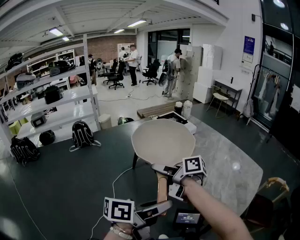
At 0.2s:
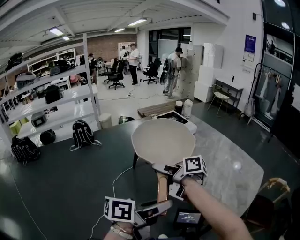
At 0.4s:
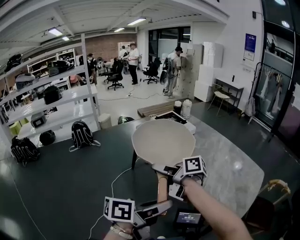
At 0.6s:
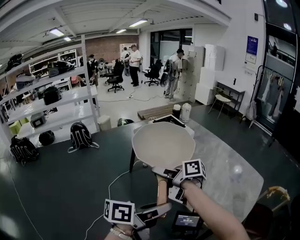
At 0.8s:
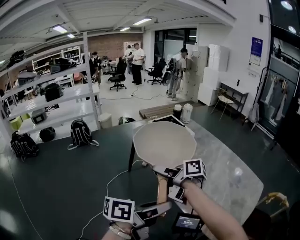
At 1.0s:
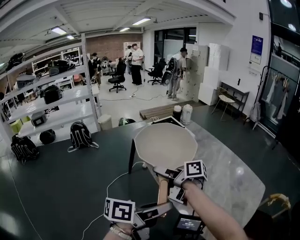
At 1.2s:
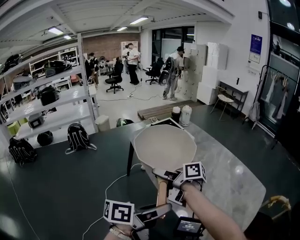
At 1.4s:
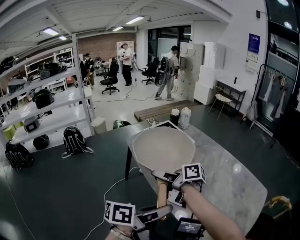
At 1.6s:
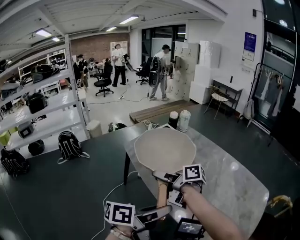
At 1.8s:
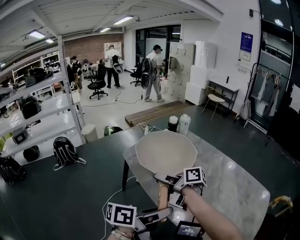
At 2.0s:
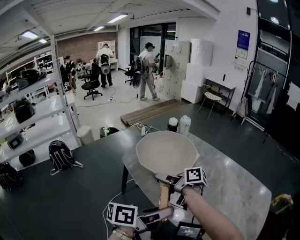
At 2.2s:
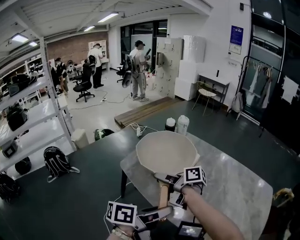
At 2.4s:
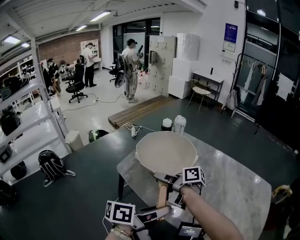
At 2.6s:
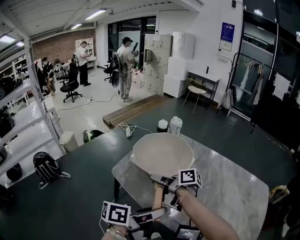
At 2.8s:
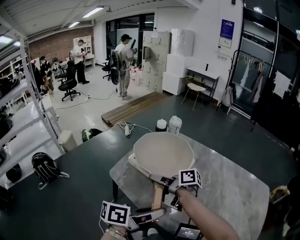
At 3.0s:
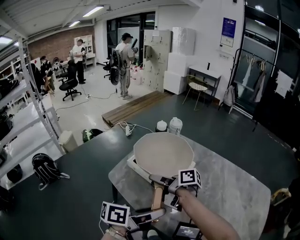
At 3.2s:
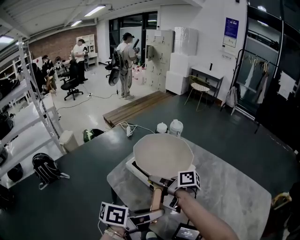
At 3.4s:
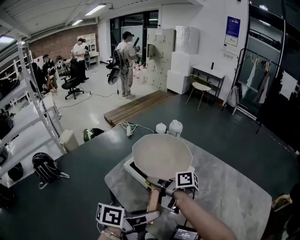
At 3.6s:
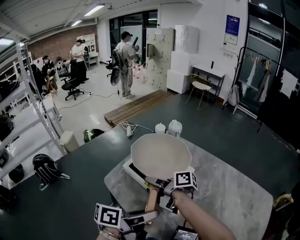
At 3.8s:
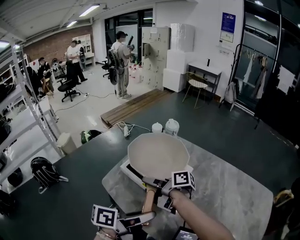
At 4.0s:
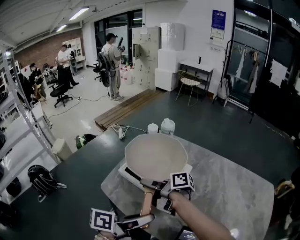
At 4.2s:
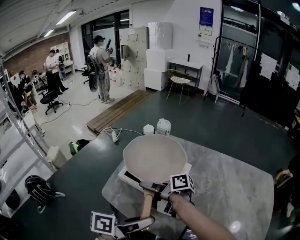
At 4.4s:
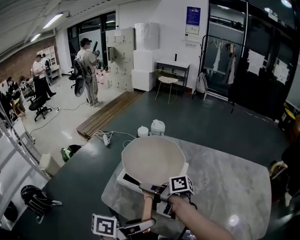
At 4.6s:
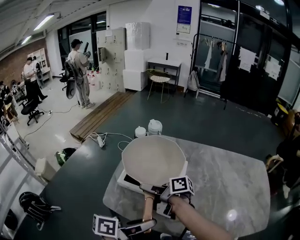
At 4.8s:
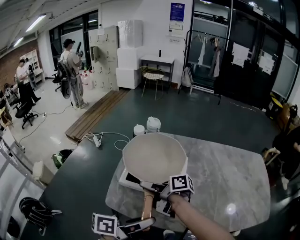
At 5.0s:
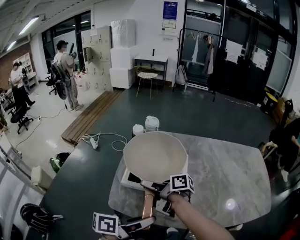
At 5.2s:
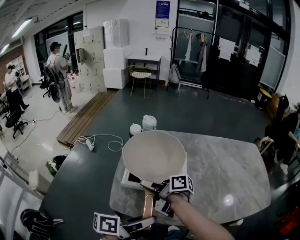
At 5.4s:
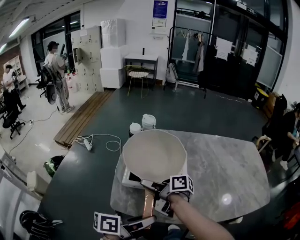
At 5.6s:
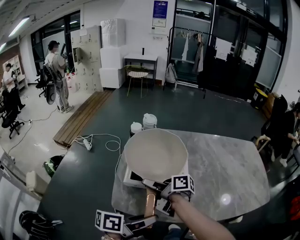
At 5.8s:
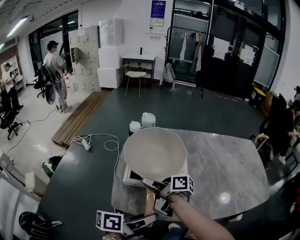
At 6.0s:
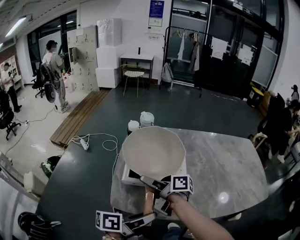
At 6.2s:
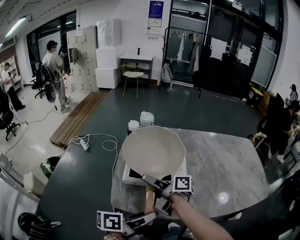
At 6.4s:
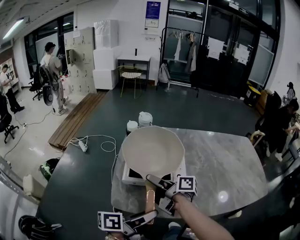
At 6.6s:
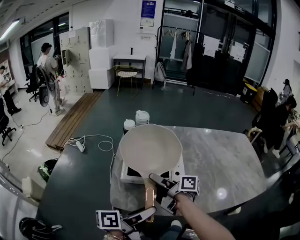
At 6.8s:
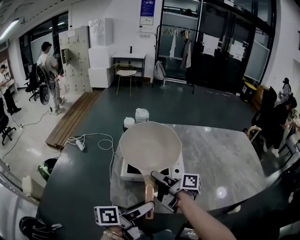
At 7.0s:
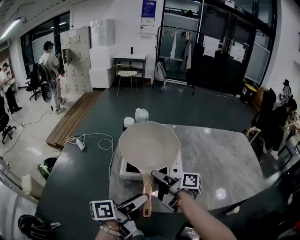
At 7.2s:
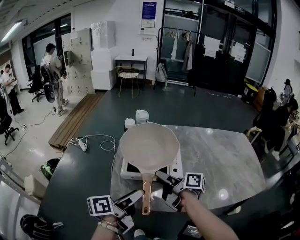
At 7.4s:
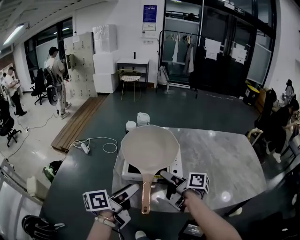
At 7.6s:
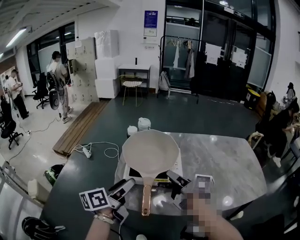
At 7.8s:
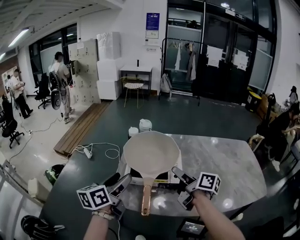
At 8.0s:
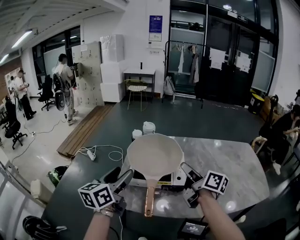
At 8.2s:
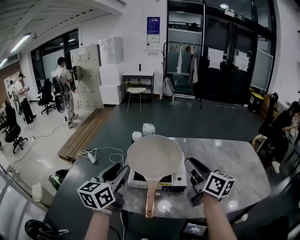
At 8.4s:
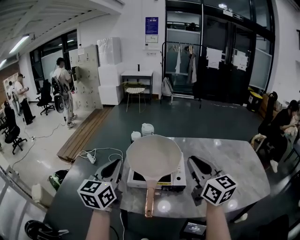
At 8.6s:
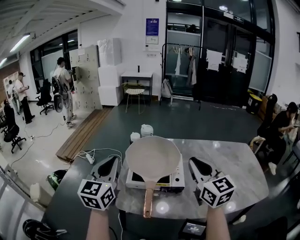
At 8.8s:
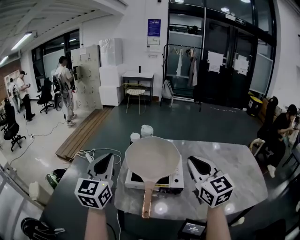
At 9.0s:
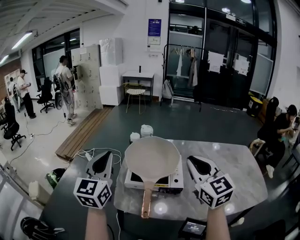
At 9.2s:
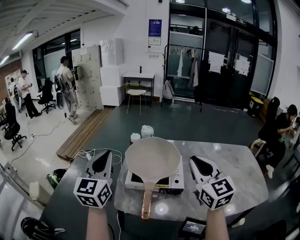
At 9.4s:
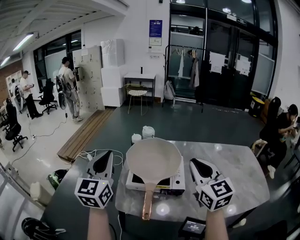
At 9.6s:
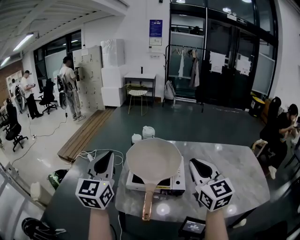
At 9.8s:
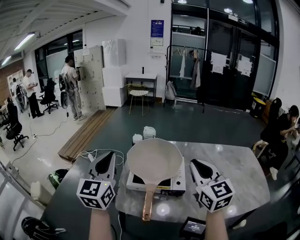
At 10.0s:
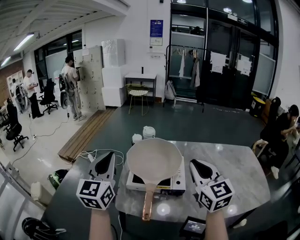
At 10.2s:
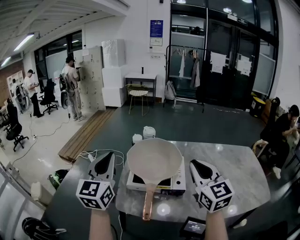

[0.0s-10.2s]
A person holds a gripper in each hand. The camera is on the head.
0.0s to 1.4s: The grippers both shift forward by approximately 15 cm.
1.4s to 3.0s: The left gripper travels forward and to the left by approximately 25 cm. The right gripper goes approximately 25 cm forward.
3.0s to 4.4s: The right gripper ends up some 5 cm from where it was; the left gripper is displaced to the left by roughly 5 cm.
4.4s to 5.8s: The right gripper rotates some 30 degrees, while the left gripper heads to the left, covering roughly 10 cm.
5.8s to 7.2s: The left gripper changes place by approximately 5 cm, and opens. Meanwhile the right gripper travels to the right by some 10 cm, and opens.
7.2s to 8.8s: The right gripper heads upward and to the right, covering about 20 cm, twists roughly 80 degrees counterclockwise, seen from behind, and closes its fingers; the left gripper goes about 20 cm upward, to the left and forward, twists about 70 degrees clockwise, seen from behind, and closes its fingers.
8.8s to 10.2s: There are only small adjustments of the grippers.

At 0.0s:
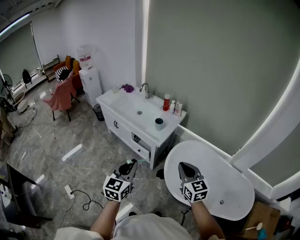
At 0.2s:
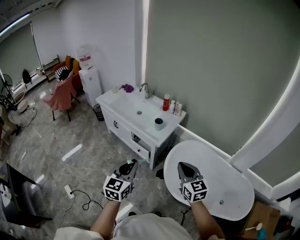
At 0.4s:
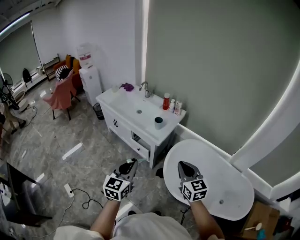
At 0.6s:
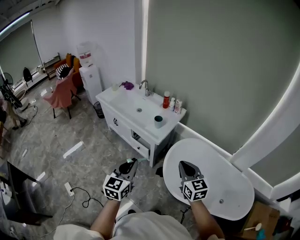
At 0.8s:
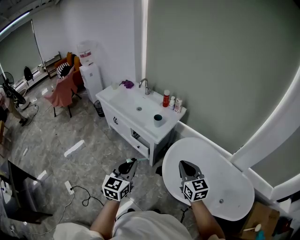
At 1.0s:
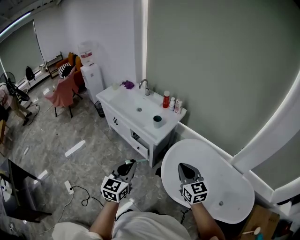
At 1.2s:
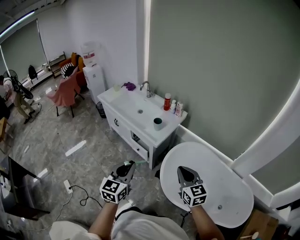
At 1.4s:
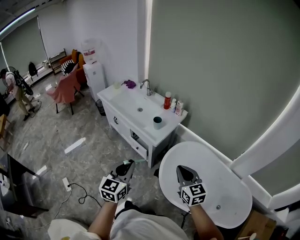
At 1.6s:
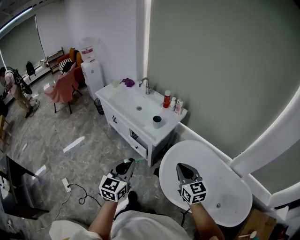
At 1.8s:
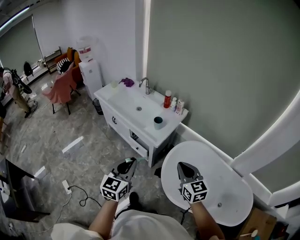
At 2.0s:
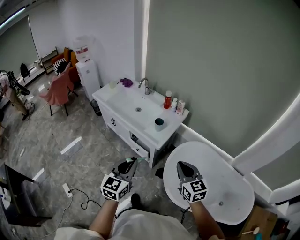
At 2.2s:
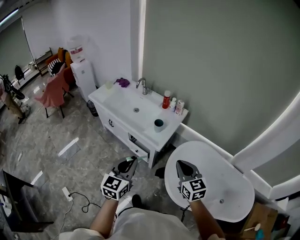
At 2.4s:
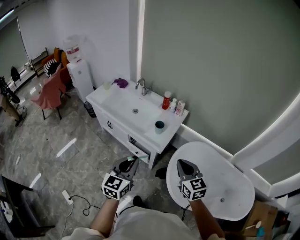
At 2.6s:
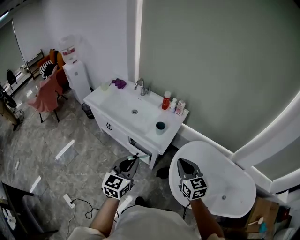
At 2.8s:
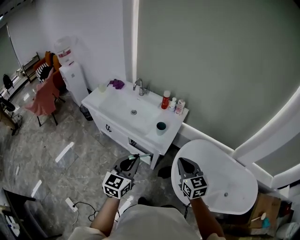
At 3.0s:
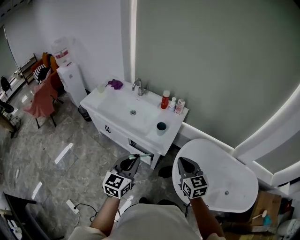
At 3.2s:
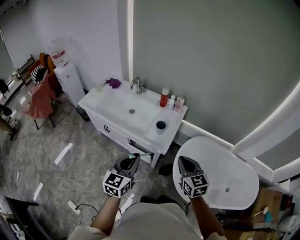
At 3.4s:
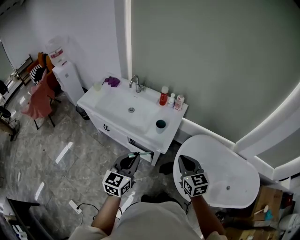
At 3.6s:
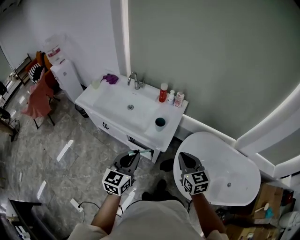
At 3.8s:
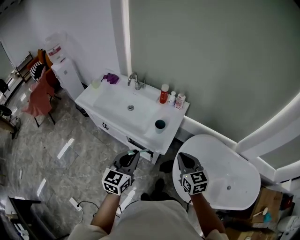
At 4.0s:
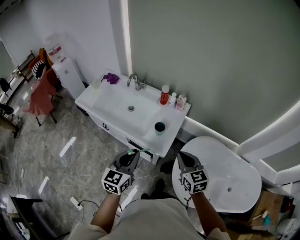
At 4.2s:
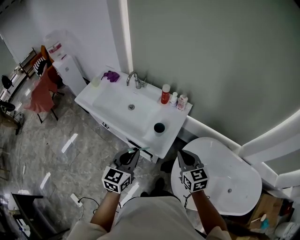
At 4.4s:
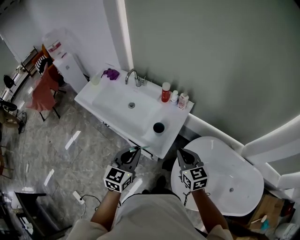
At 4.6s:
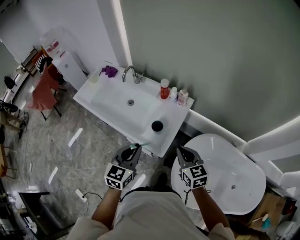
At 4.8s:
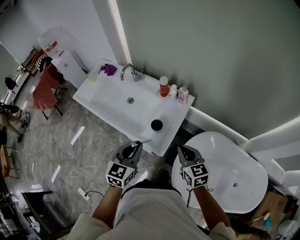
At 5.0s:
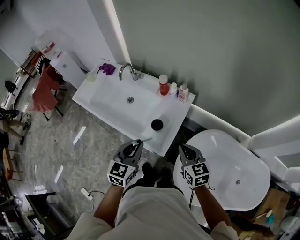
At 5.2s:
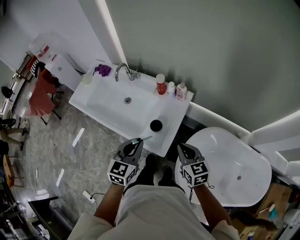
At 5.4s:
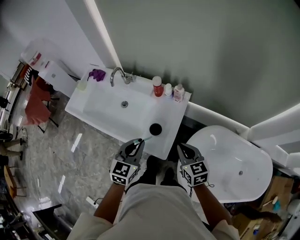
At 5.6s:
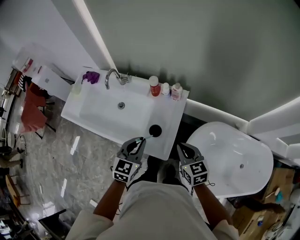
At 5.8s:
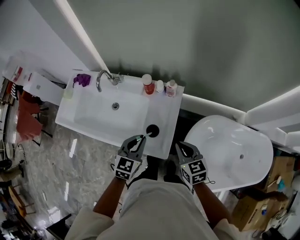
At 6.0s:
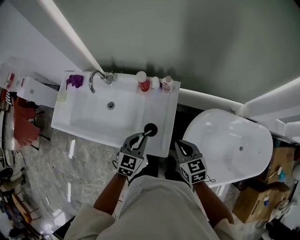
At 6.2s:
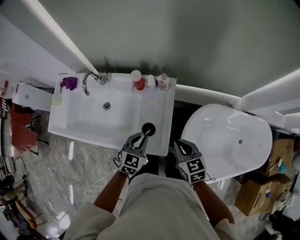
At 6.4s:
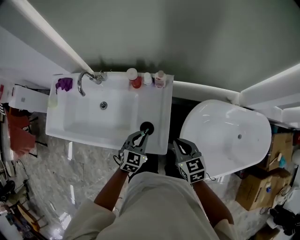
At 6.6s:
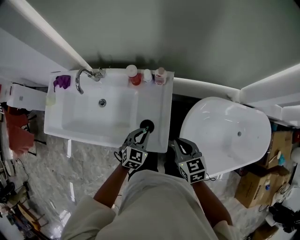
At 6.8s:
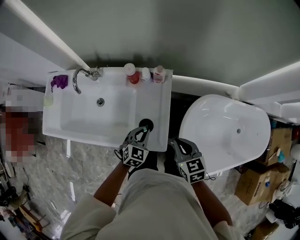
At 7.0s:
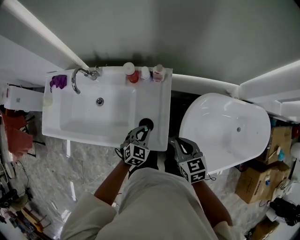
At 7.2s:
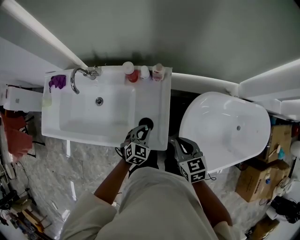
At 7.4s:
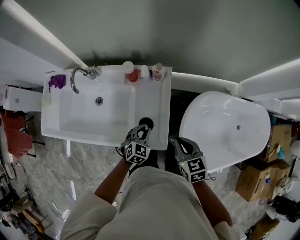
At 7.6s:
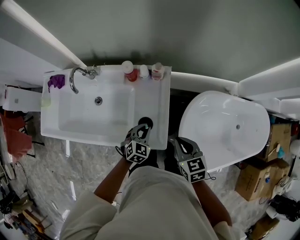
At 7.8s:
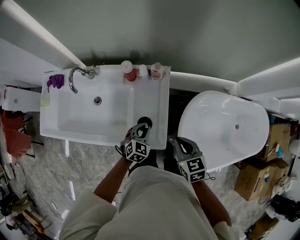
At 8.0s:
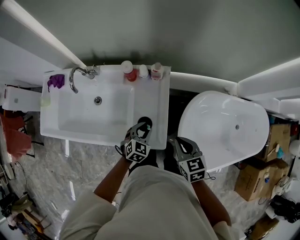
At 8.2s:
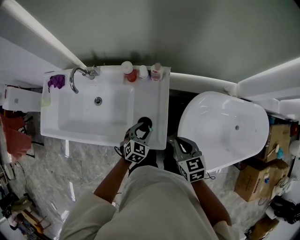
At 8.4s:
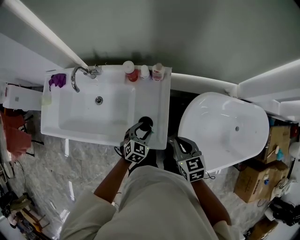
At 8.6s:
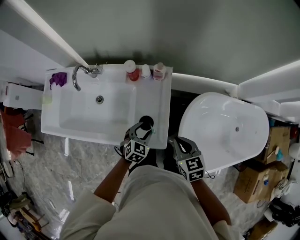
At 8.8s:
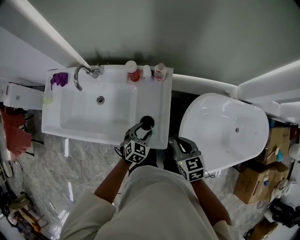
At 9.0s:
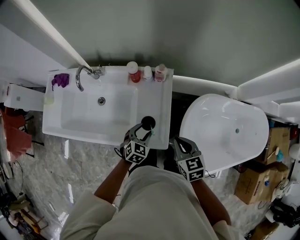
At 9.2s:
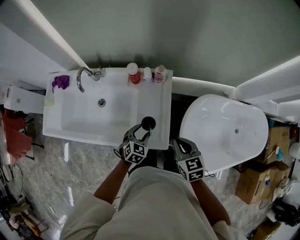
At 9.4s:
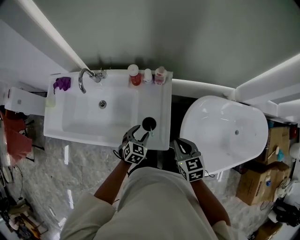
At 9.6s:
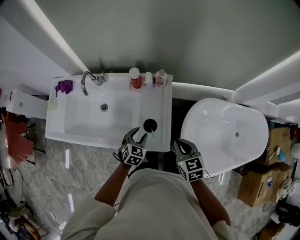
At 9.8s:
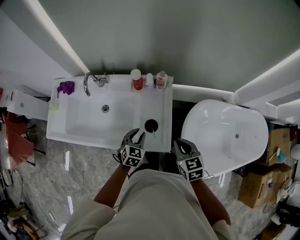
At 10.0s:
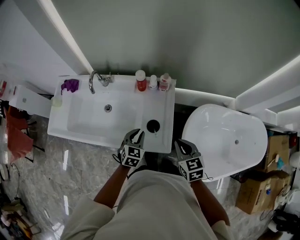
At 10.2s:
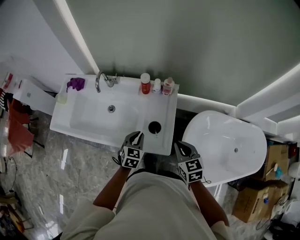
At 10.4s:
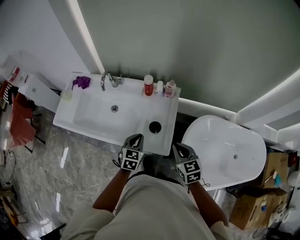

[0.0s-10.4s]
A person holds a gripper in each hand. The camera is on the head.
0.0s to 1.4s: The right gripper changes place by about 5 cm.
1.4s to 3.0s: The two grippers go approximately 20 cm forward and to the left.
3.0s to 4.4s: Both grippers move forward, about 15 cm.
4.4s to 6.0s: The right gripper moves downward and forward, about 10 cm. Meanwhile the left gripper moves forward and downward, about 20 cm, and rotates approximately 30 degrees.
6.0s to 7.4s: The left gripper moves downward, about 15 cm.
7.4s to 9.0s: The left gripper opens its fingers.
9.0s to 10.4s: The right gripper moves roughly 5 cm; the left gripper goes roughly 10 cm upward and to the left, changes its angle by about 20 degrees, and closes its fingers.

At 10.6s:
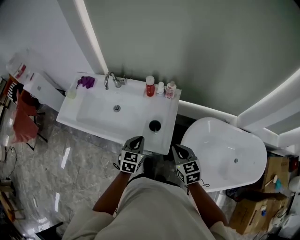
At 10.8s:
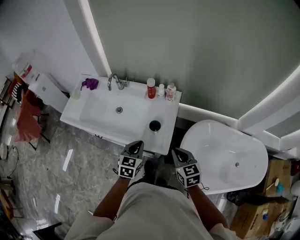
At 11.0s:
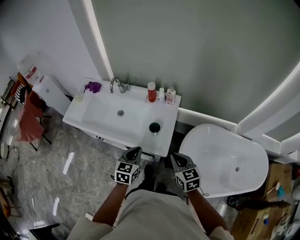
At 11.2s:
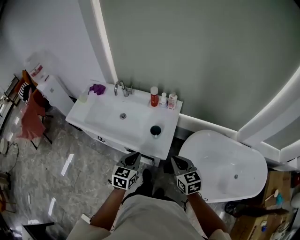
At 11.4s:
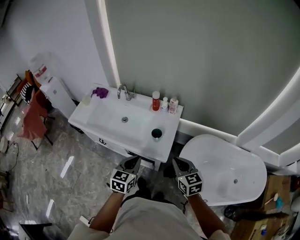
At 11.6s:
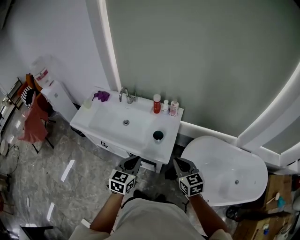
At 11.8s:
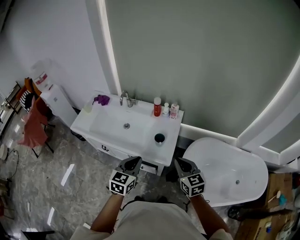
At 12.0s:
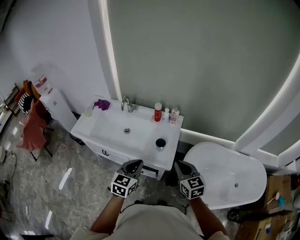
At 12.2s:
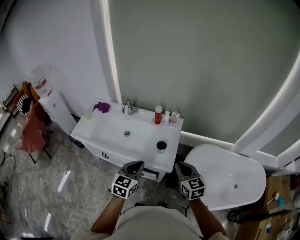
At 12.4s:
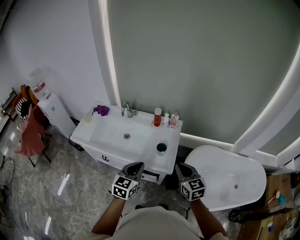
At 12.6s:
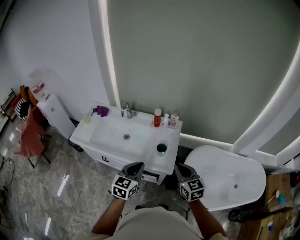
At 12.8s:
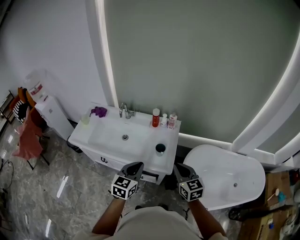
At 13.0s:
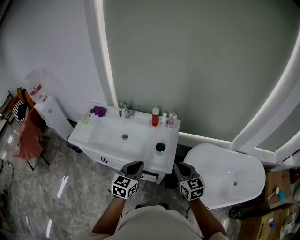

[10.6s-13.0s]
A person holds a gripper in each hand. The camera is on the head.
10.6s to 11.8s: The right gripper heads upward and backward, covering about 10 cm, while the left gripper shifts about 20 cm backward and upward.
11.8s to 13.0s: The grippers move only a little.
